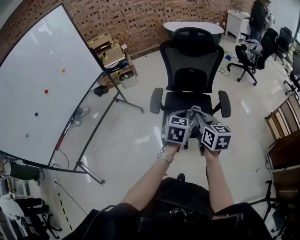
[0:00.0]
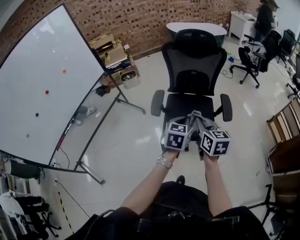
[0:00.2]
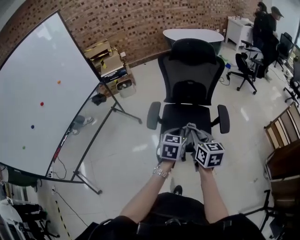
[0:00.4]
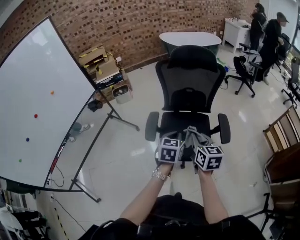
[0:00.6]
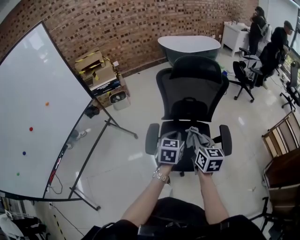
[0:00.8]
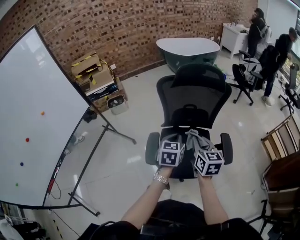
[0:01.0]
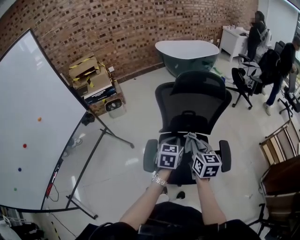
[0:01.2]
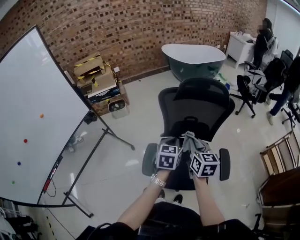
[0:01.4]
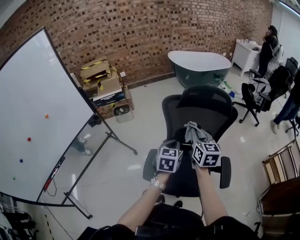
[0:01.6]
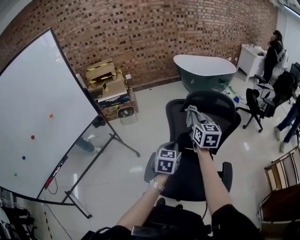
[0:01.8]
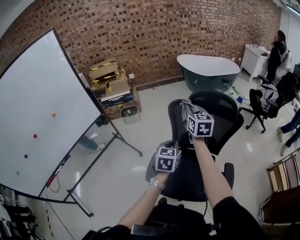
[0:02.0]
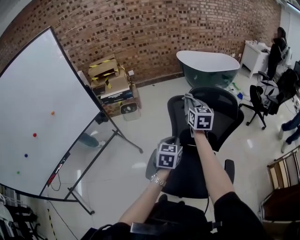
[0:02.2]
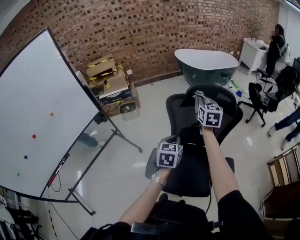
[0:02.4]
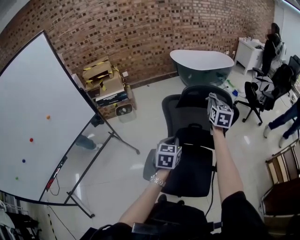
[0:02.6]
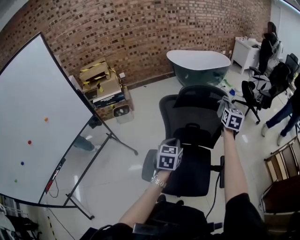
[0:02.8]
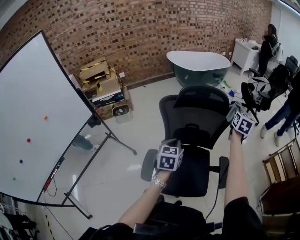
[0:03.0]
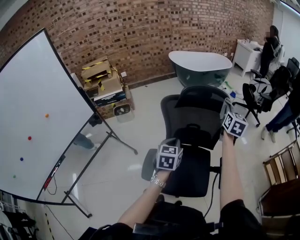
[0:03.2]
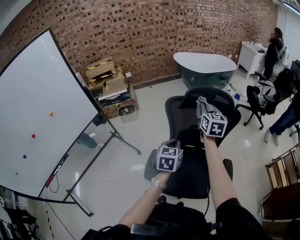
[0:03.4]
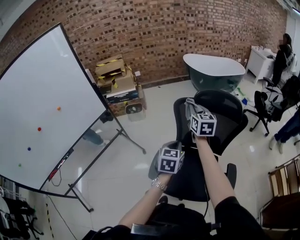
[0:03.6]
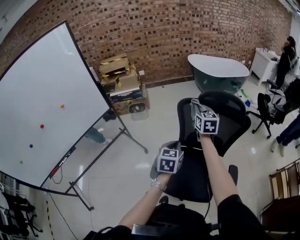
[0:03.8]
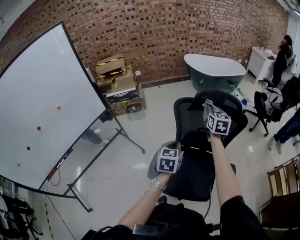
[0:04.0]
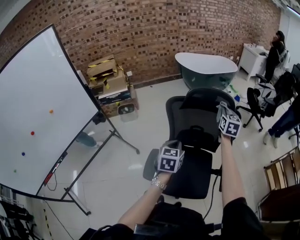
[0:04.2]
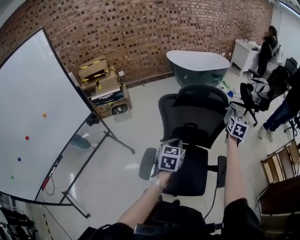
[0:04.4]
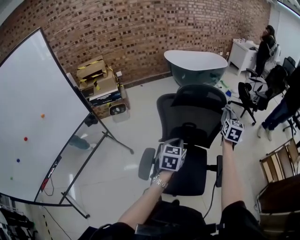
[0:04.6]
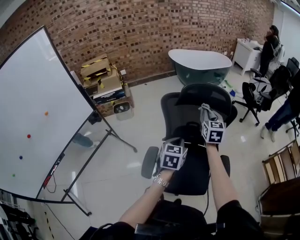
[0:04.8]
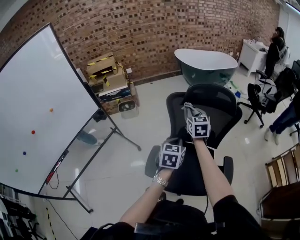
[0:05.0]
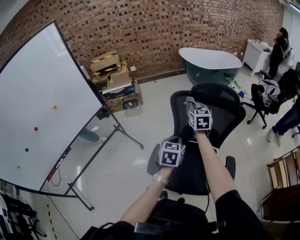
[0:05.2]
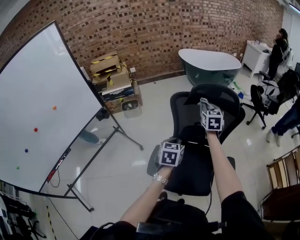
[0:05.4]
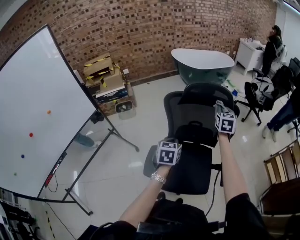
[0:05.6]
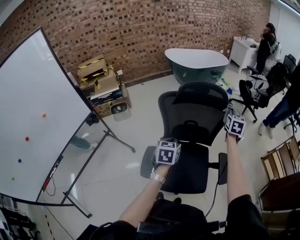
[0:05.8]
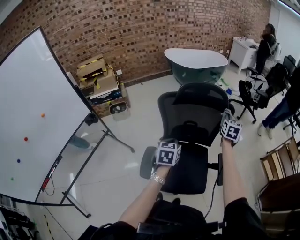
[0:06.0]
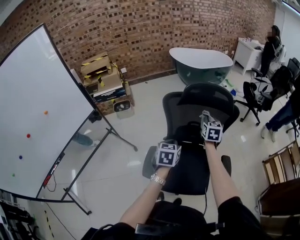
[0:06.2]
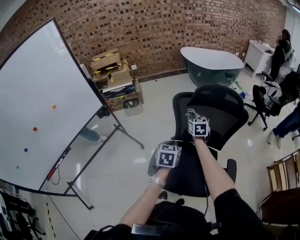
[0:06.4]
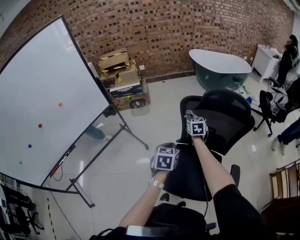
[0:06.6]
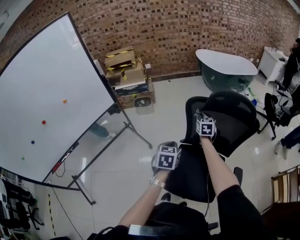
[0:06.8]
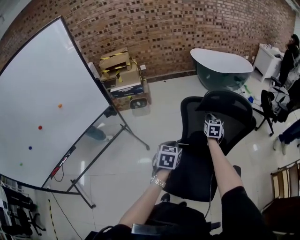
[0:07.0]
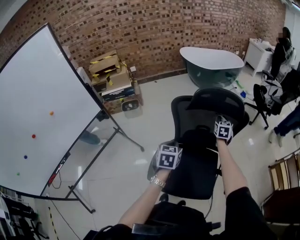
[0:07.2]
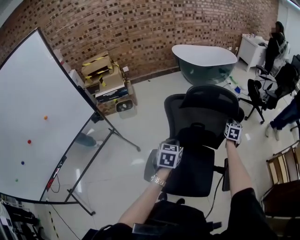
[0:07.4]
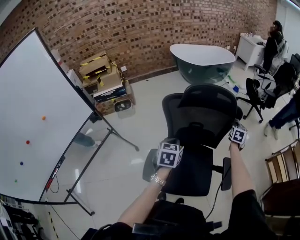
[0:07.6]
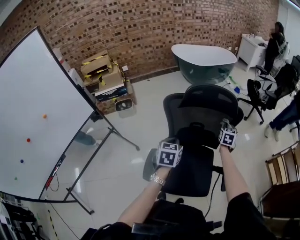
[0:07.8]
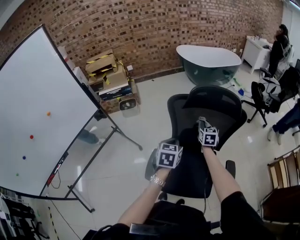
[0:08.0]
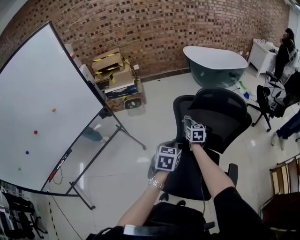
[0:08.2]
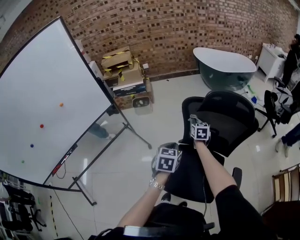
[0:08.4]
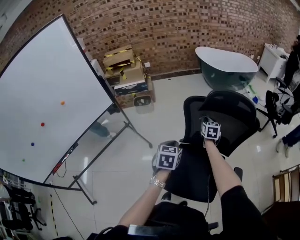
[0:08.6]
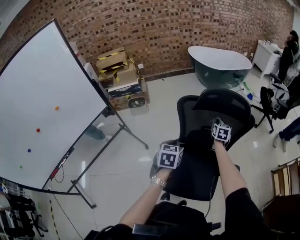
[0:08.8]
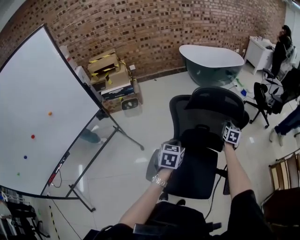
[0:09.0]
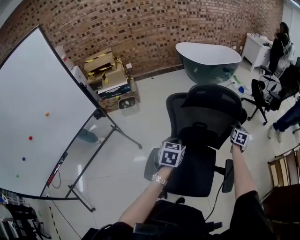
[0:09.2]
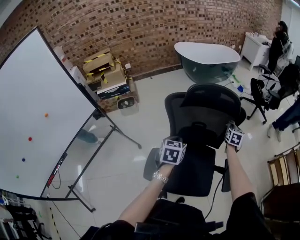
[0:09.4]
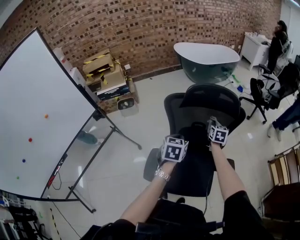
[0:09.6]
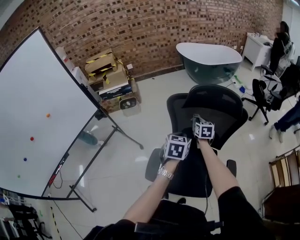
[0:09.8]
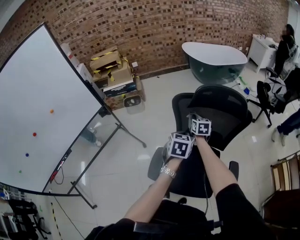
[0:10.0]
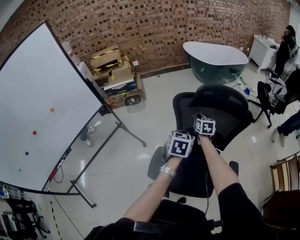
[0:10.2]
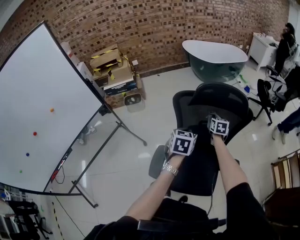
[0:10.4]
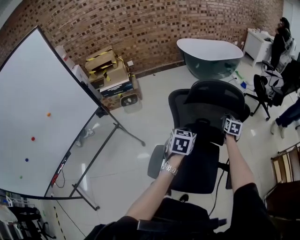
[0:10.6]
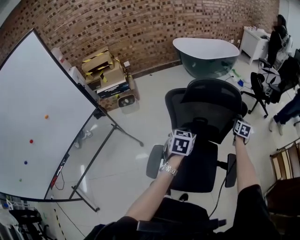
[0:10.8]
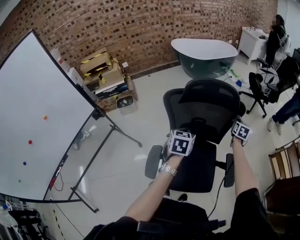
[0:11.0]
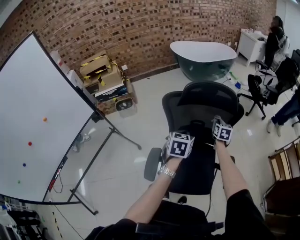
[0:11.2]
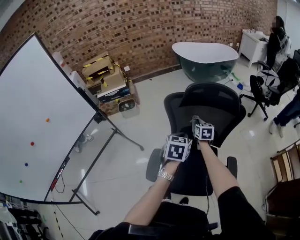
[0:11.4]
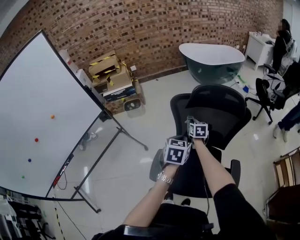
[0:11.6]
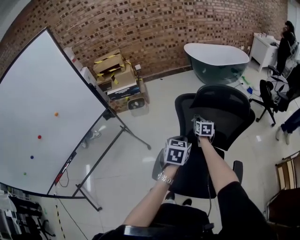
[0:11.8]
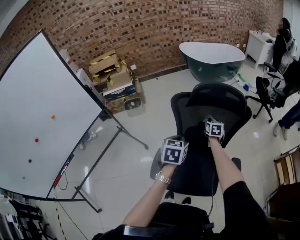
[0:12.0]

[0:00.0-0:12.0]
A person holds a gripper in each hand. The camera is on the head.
0:00.0 to 0:01.6: Both grippers move forward, roughly 35 cm.
0:01.6 to 0:03.0: The right gripper is displaced to the right and forward by roughly 30 cm, and rotates some 30 degrees.
0:03.0 to 0:04.4: The left gripper moves roughly 5 cm to the left and comes back. The right gripper goes to the left and returns, approximately 35 cm each way.
0:04.4 to 0:06.0: The right gripper travels downward by roughly 5 cm, and goes to the left and returns, approximately 30 cm each way.
0:06.0 to 0:07.6: The right gripper shifts approximately 10 cm downward.
0:09.0 to 0:10.4: The right gripper moves left and right over approximately 35 cm, changing direction 2 times. The left gripper moves roughly 5 cm.
0:10.4 to 0:12.0: The right gripper swings left and right, some 35 cm each way, with 2 reversals.

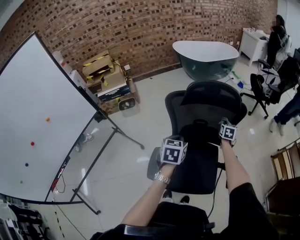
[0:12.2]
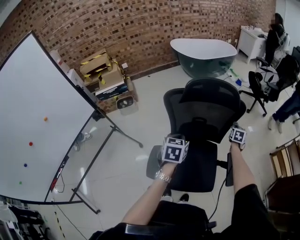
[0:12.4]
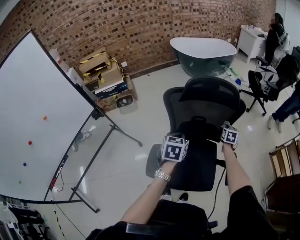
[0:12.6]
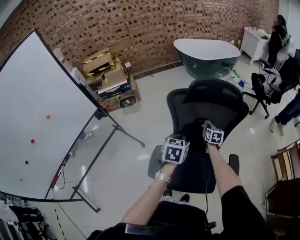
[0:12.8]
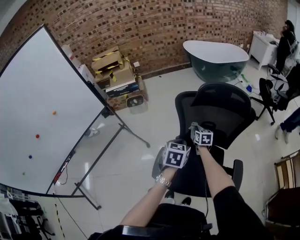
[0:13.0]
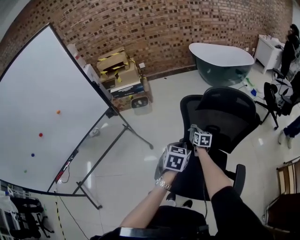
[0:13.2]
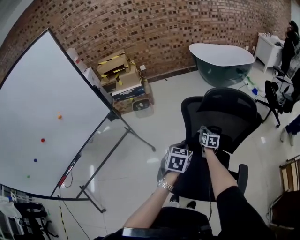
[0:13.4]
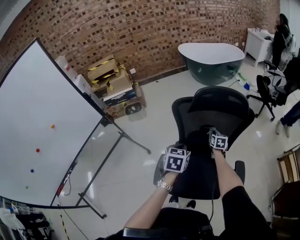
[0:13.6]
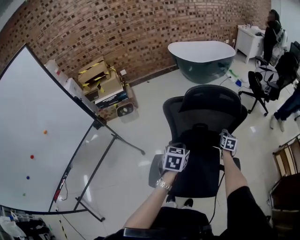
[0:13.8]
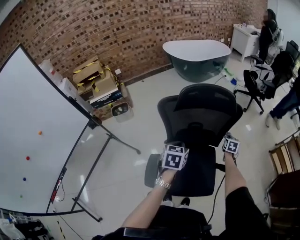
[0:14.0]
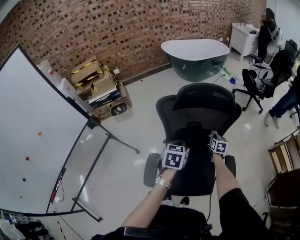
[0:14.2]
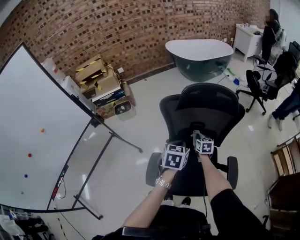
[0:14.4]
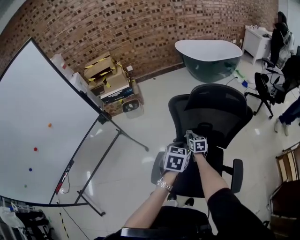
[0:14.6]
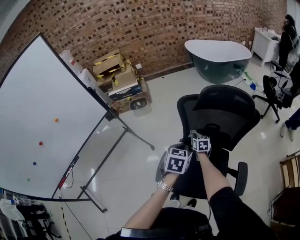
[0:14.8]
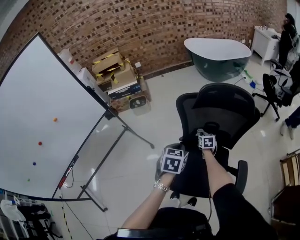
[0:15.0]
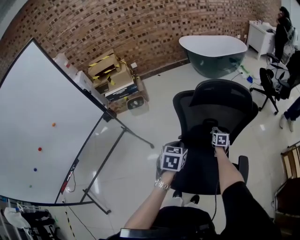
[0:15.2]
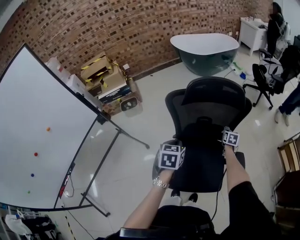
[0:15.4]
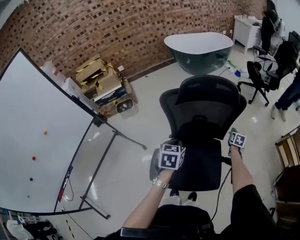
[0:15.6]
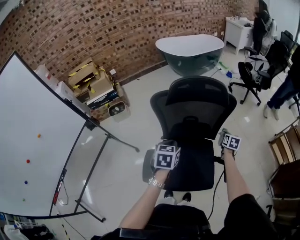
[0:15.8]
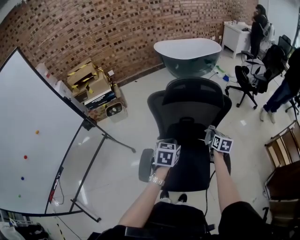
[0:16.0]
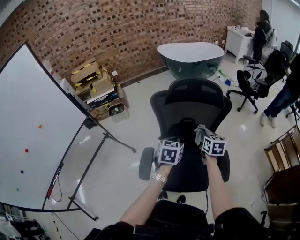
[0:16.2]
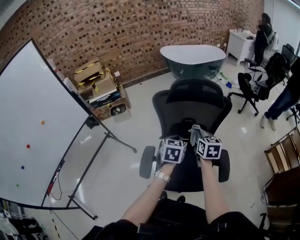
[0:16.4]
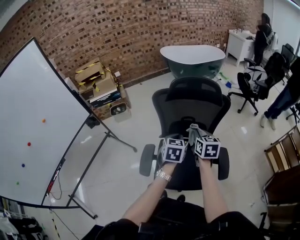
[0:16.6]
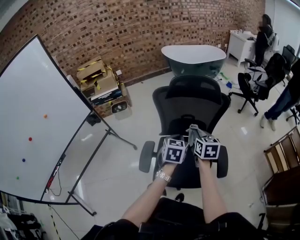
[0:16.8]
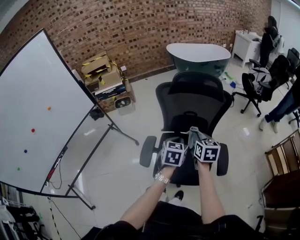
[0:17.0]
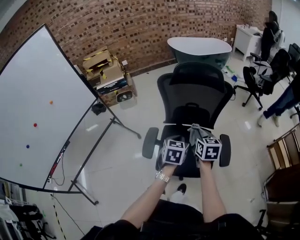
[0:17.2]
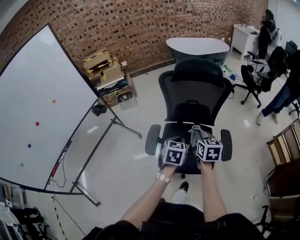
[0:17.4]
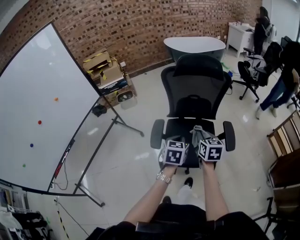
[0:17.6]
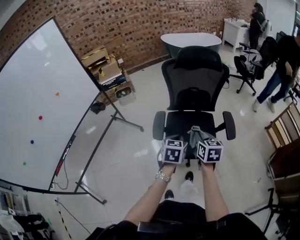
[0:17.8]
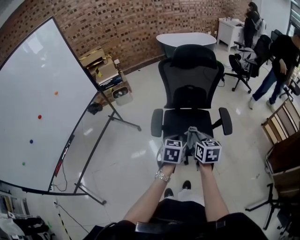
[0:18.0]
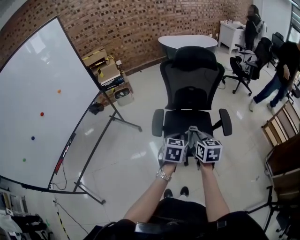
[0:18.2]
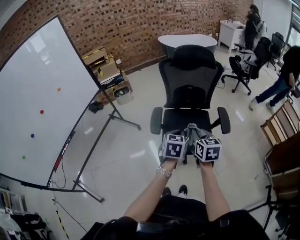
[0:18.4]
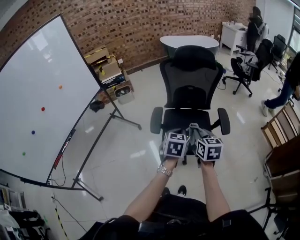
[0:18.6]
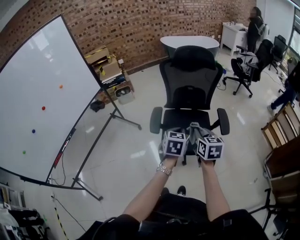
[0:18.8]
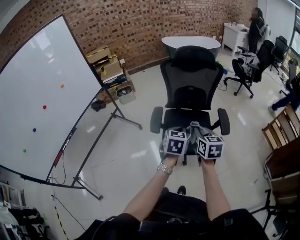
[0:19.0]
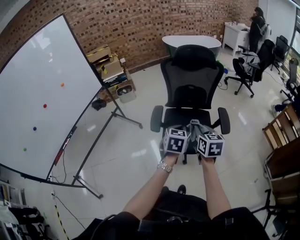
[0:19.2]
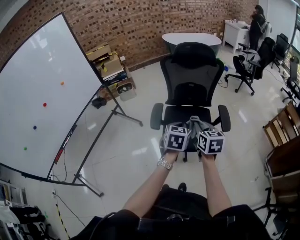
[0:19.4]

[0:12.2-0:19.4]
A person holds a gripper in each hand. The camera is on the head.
0:15.0 to 0:16.6: The left gripper shifts some 10 cm to the right. The right gripper goes about 30 cm upward and backward, and goes to the right and returns, roughly 30 cm each way.
0:16.6 to 0:18.0: Both grippers travel together backward, approximately 30 cm.
0:18.0 to 0:19.4: The right gripper shifts by approximately 5 cm. The left gripper moves roughly 5 cm.

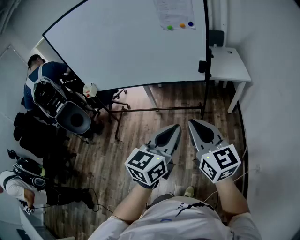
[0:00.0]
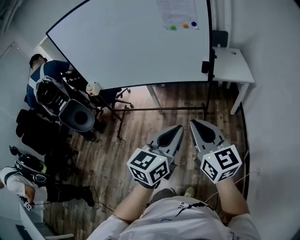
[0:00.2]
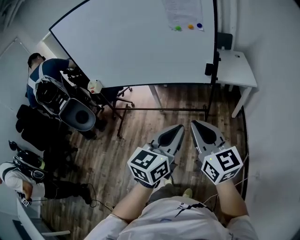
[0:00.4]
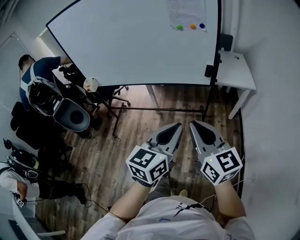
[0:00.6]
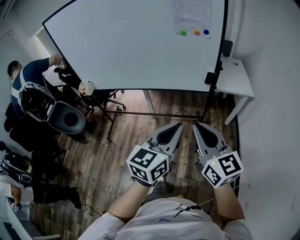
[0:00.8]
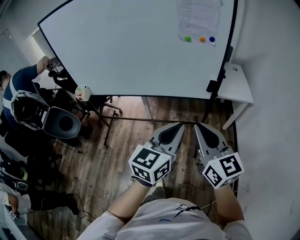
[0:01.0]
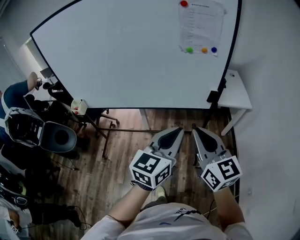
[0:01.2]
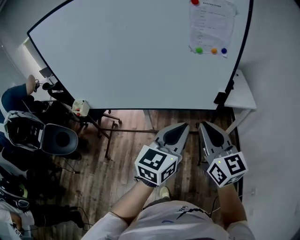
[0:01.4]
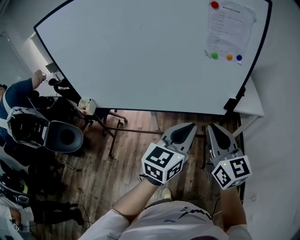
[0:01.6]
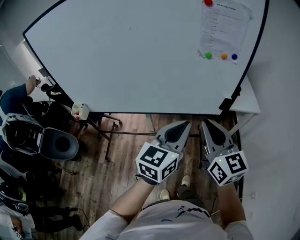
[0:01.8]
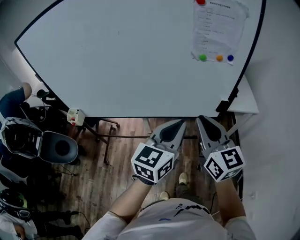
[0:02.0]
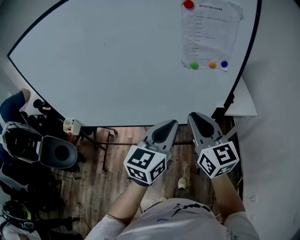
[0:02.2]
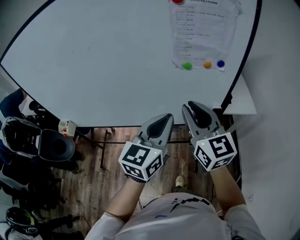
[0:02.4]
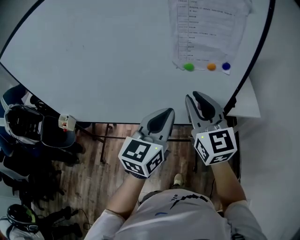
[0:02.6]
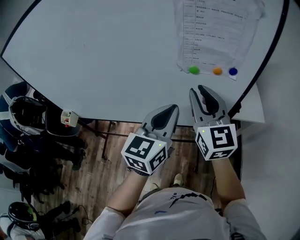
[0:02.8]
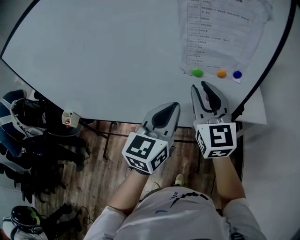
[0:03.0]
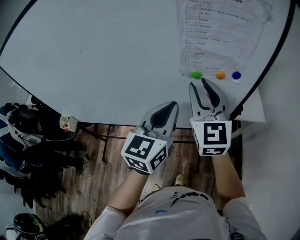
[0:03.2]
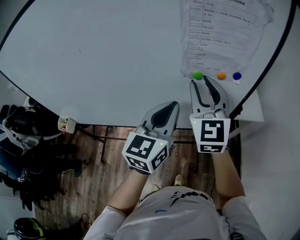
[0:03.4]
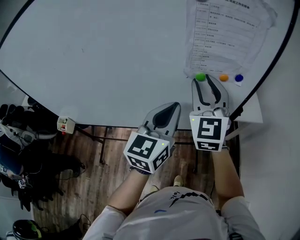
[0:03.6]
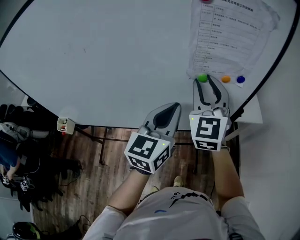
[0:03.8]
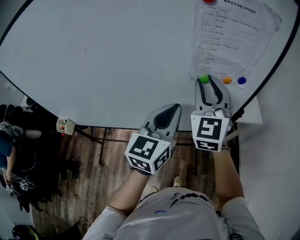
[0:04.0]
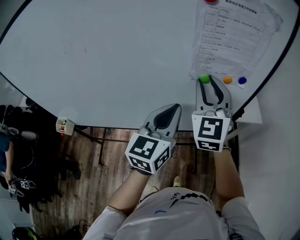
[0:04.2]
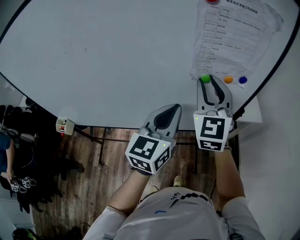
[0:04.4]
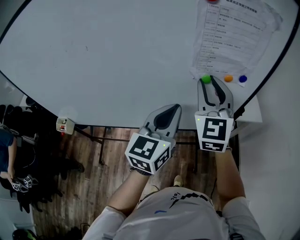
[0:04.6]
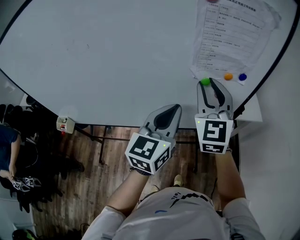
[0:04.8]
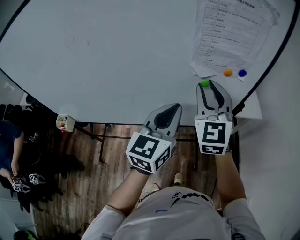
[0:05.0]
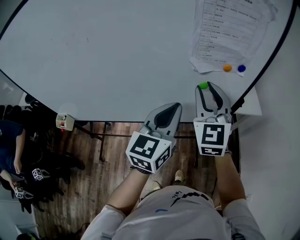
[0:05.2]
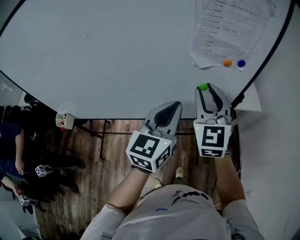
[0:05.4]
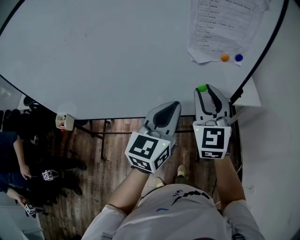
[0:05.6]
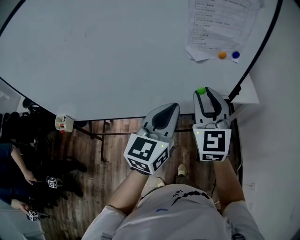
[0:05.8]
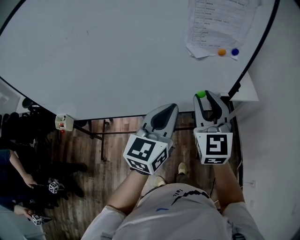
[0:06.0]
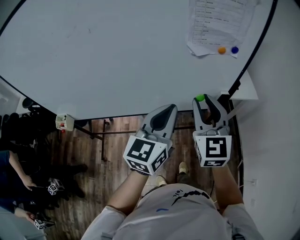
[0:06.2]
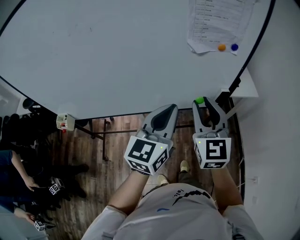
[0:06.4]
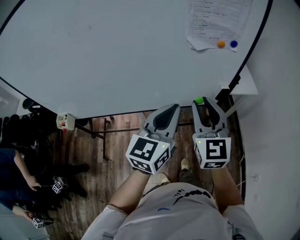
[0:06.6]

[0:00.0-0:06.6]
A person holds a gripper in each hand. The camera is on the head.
0:00.0 to 0:01.6: The grippers both shift forward and to the left by approximately 35 cm.
0:01.6 to 0:03.2: Both grippers travel together forward, about 25 cm. The right gripper rotates about 20 degrees, and opens its fingers.
0:03.2 to 0:05.0: The grippers stay close to where they were, moving slightly.
0:05.0 to 0:06.6: The left gripper shifts roughly 10 cm backward; the right gripper heads backward and downward, covering some 15 cm.
